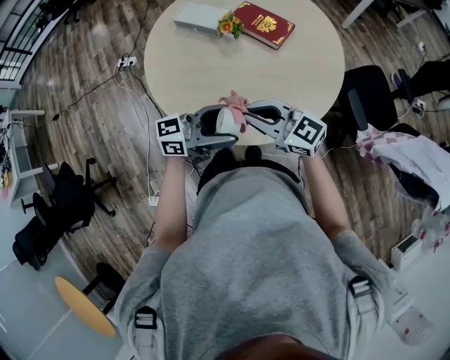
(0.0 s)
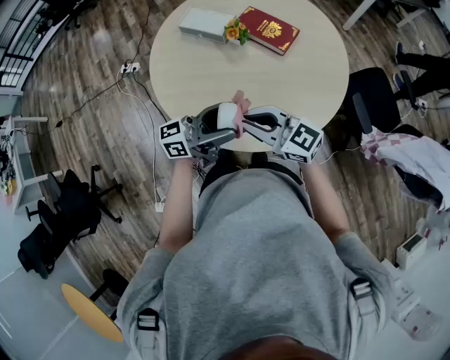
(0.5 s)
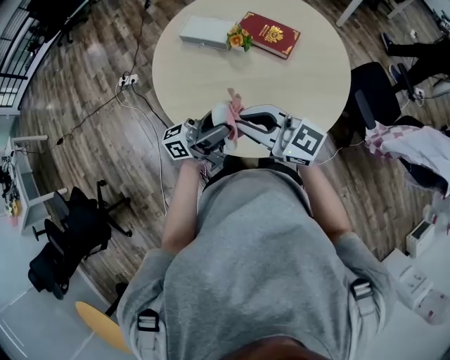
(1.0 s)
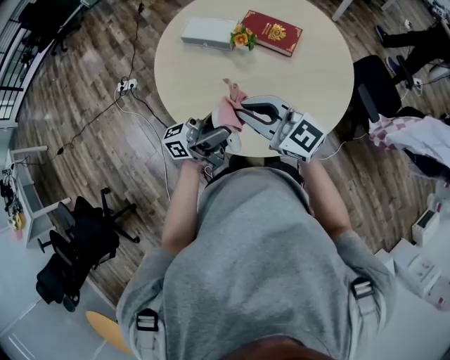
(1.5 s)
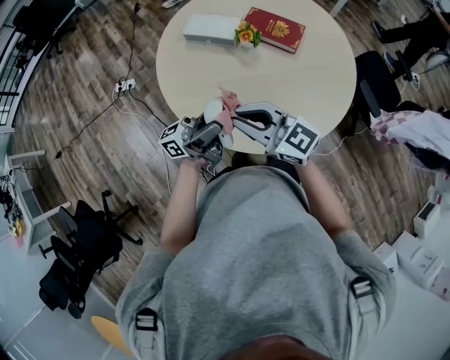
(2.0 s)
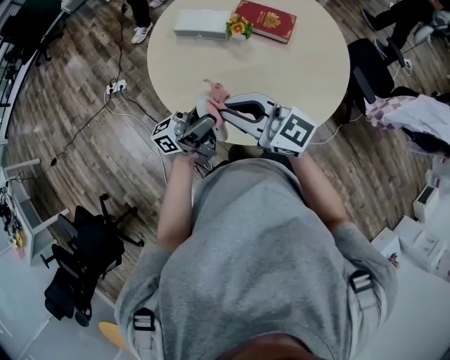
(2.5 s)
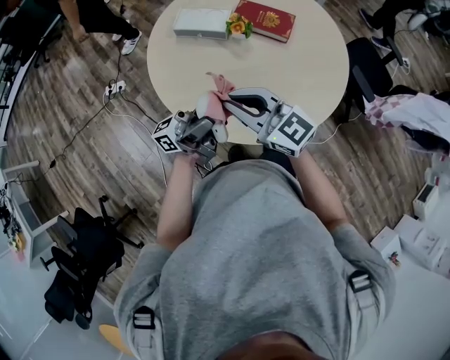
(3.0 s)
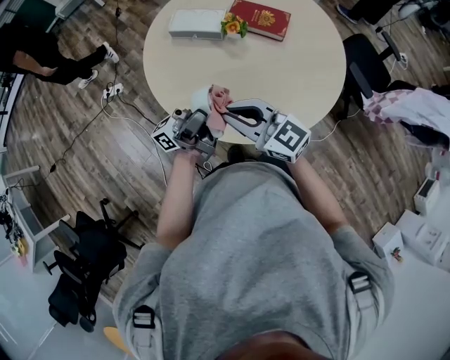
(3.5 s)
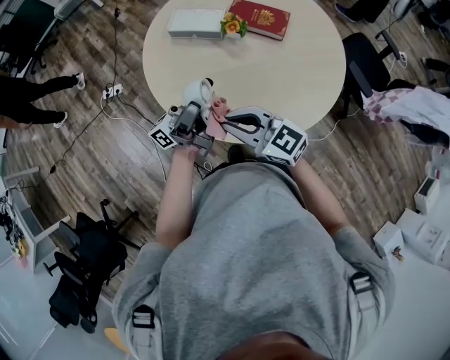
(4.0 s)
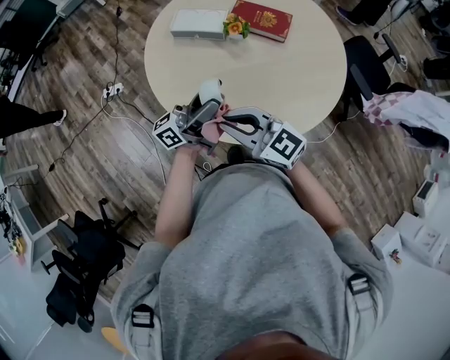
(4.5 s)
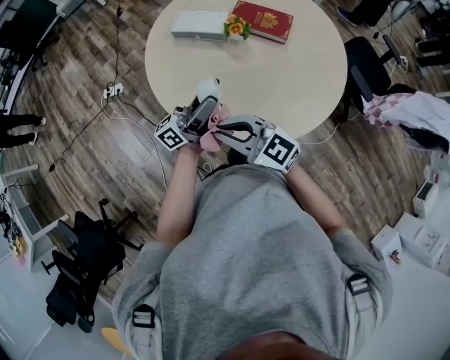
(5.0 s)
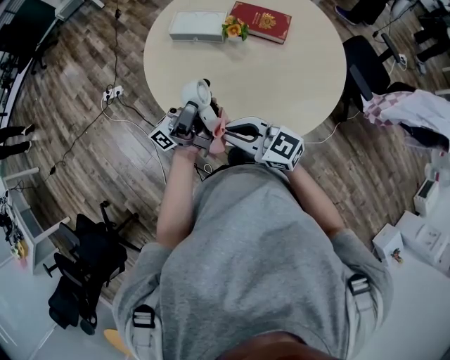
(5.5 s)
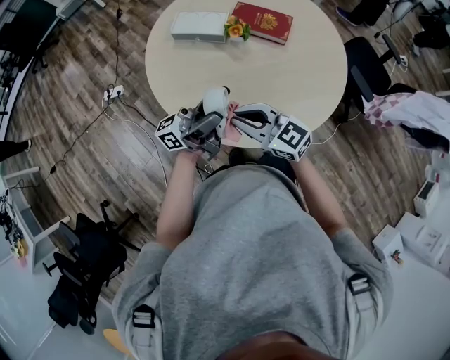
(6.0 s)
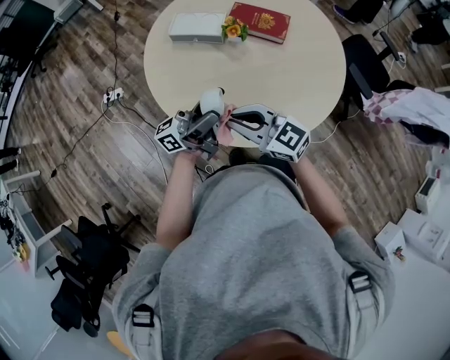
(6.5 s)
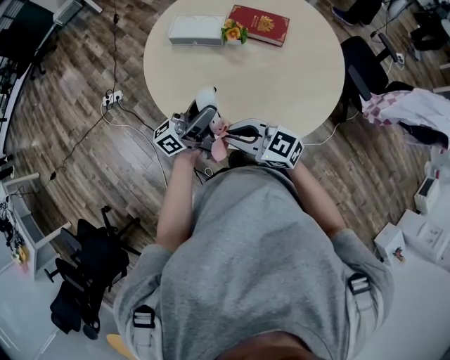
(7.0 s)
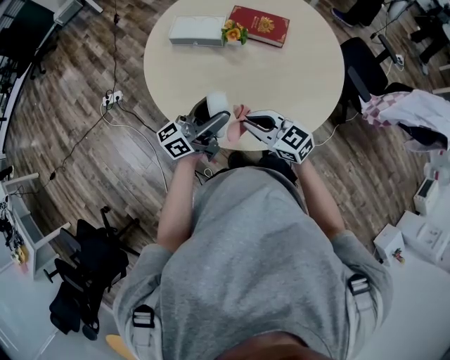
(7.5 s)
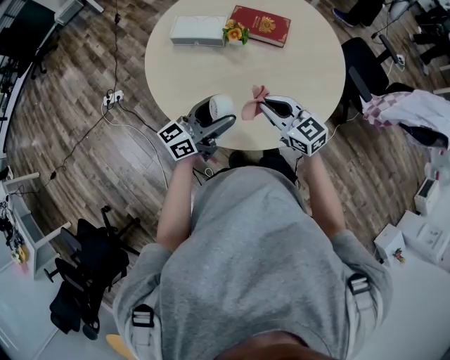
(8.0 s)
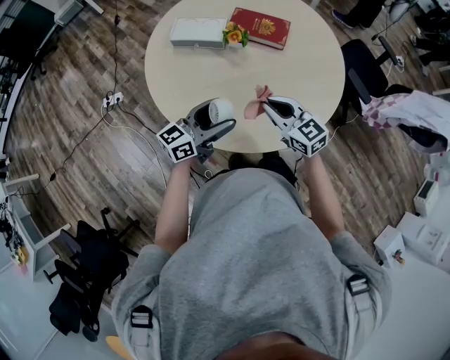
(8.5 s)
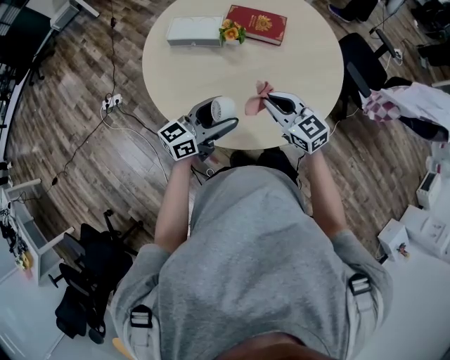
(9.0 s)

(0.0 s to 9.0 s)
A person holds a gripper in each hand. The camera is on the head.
0.0 s - 2.0 s: The left gripper ends up roughly 20 cm from where it was, and turns by roughly 30 degrees. Meanwhile the right gripper changes place by about 20 cm.
2.0 s - 4.5 s: The grippers stay close to where they were, moving slightly.
4.5 s - 7.0 s: The right gripper goes approximately 5 cm downward.
7.0 s - 9.0 s: The right gripper heads to the right and forward, covering some 15 cm, and rotates some 30 degrees. Meanwhile the left gripper is displaced downward by some 5 cm, and changes its angle by approximately 40 degrees.

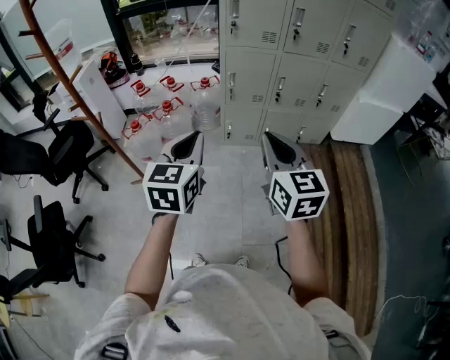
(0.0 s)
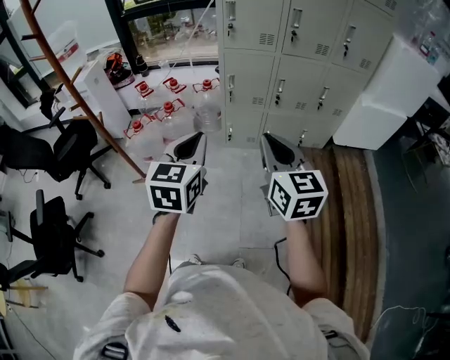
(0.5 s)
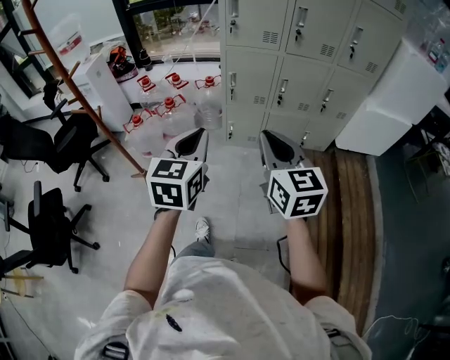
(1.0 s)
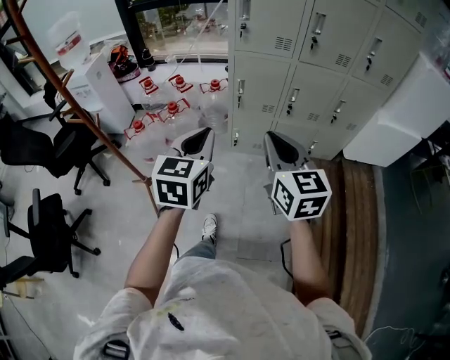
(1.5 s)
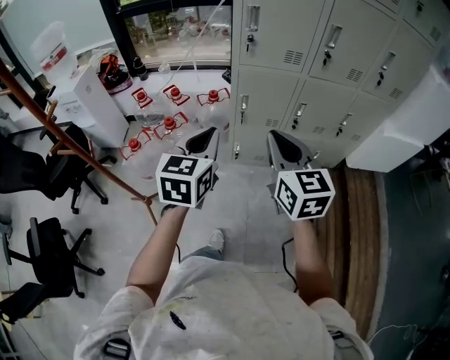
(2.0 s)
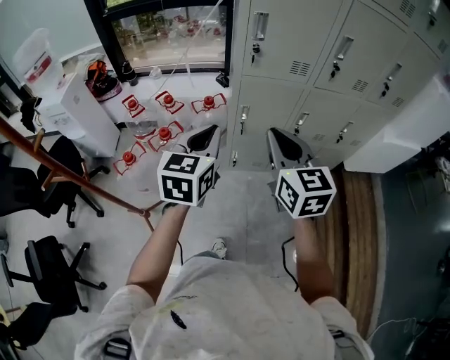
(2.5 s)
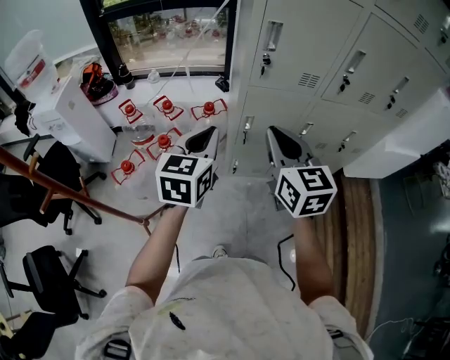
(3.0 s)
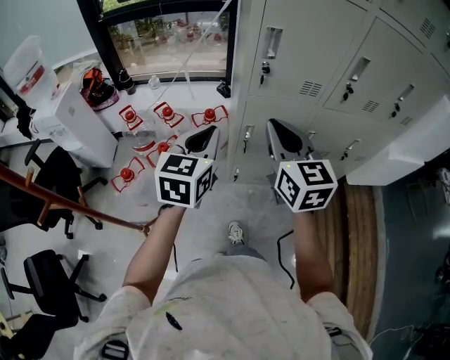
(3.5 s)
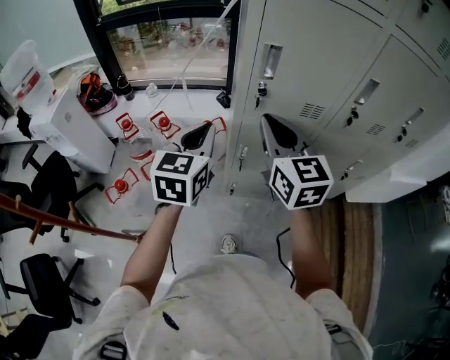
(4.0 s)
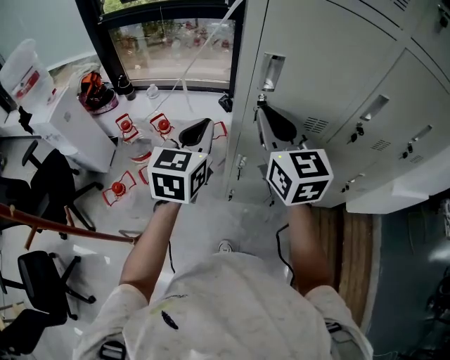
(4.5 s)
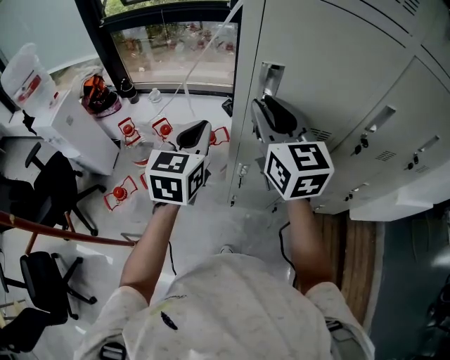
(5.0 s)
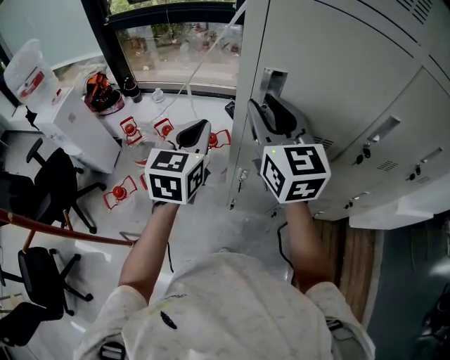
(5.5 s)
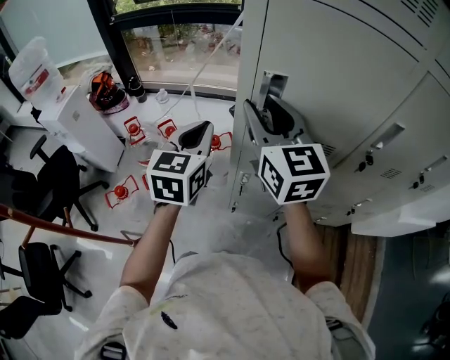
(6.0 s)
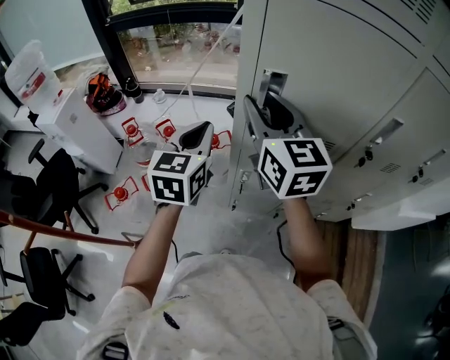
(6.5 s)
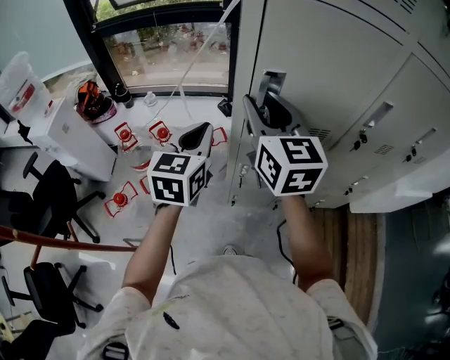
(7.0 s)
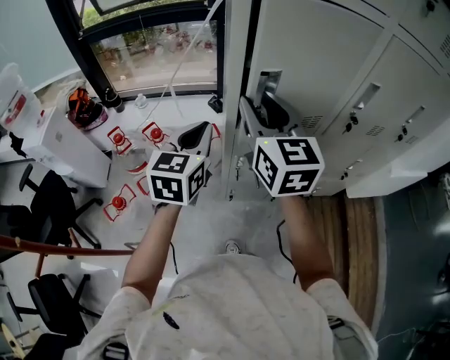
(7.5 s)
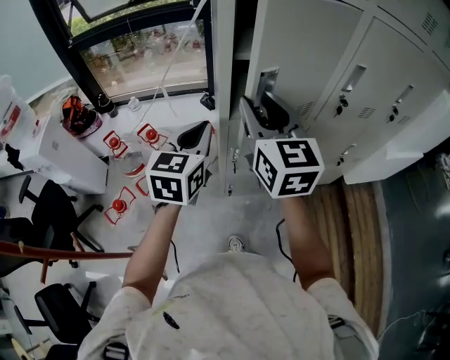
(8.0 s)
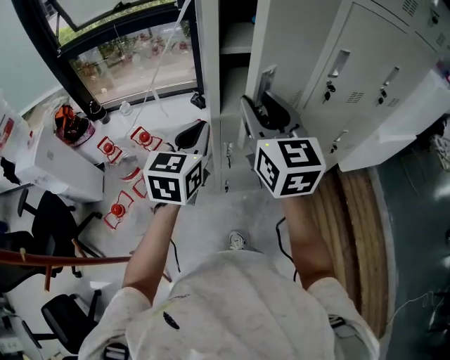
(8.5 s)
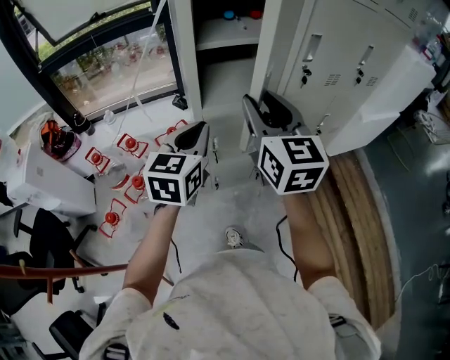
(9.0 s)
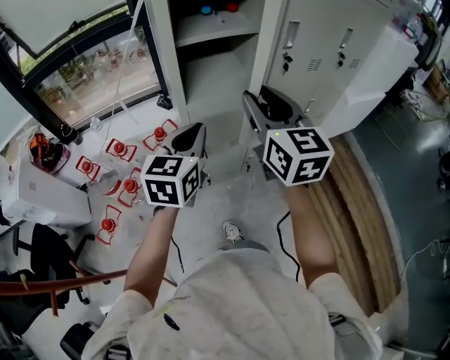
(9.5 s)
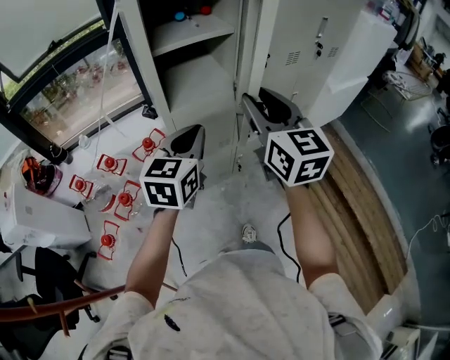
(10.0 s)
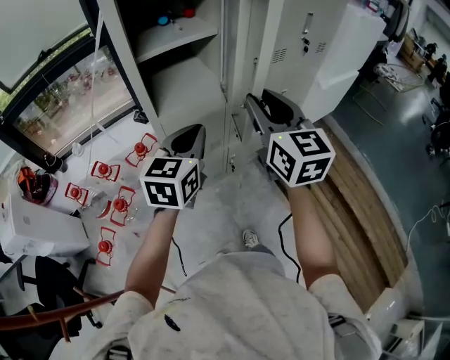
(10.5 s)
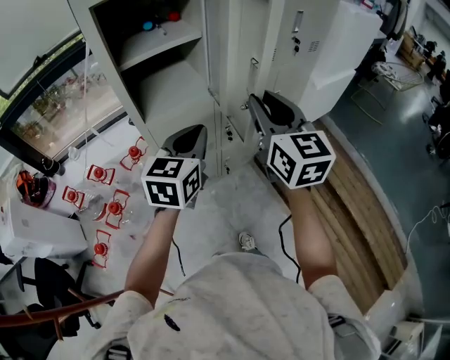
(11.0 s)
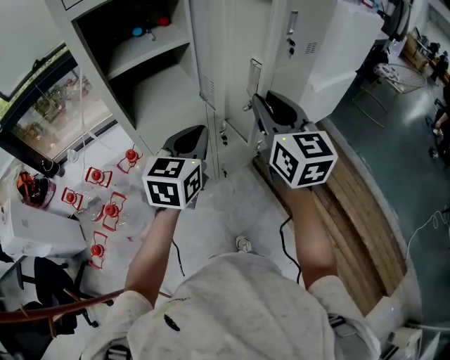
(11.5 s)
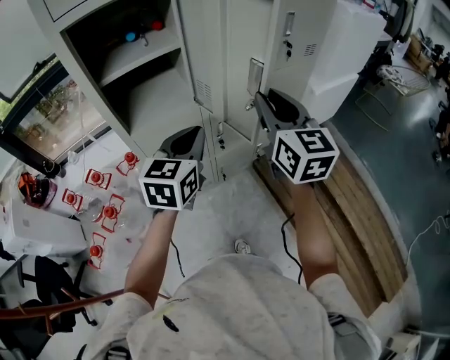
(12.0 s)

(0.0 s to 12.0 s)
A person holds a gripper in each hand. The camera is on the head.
0.0 s - 2.0 s: The two grippers go some 25 cm forward.
2.0 s - 4.0 s: The two grippers go approximately 30 cm forward.
4.0 s - 6.0 s: Both grippers travel together forward, roughly 10 cm. The right gripper opens its fingers.
6.0 s - 8.0 s: Both grippers travel together backward, roughly 10 cm.
8.0 s - 10.0 s: Both grippers travel together to the right and backward, about 15 cm. The left gripper rotates some 20 degrees.
10.0 s - 12.0 s: The left gripper goes about 15 cm to the right and forward; the right gripper shifts about 20 cm to the right.

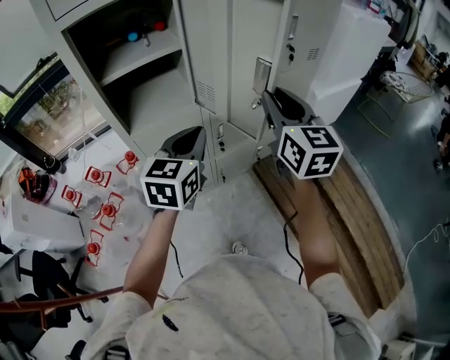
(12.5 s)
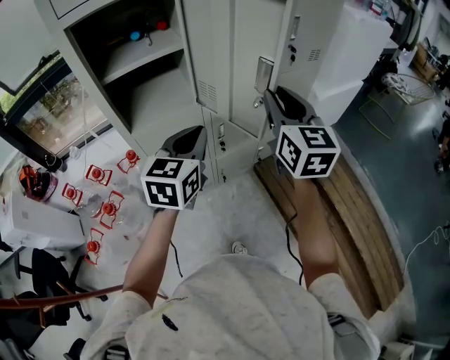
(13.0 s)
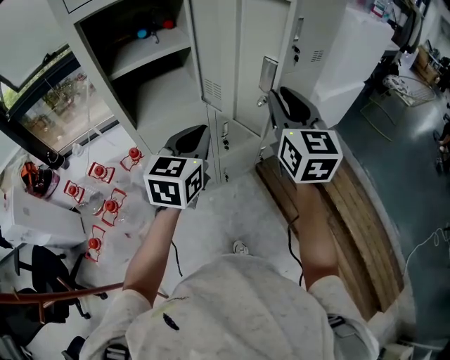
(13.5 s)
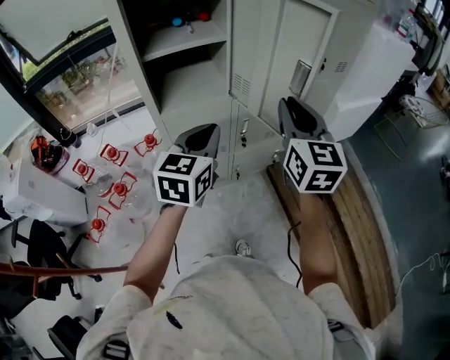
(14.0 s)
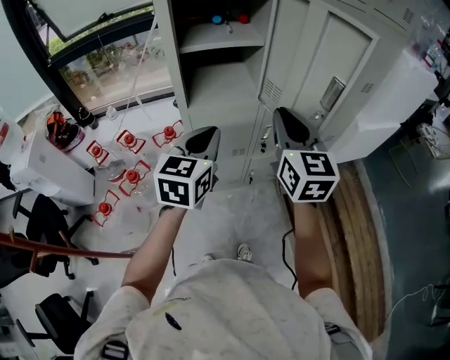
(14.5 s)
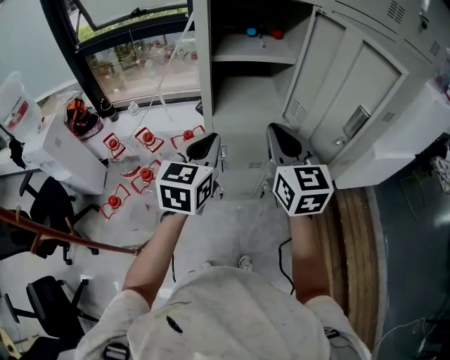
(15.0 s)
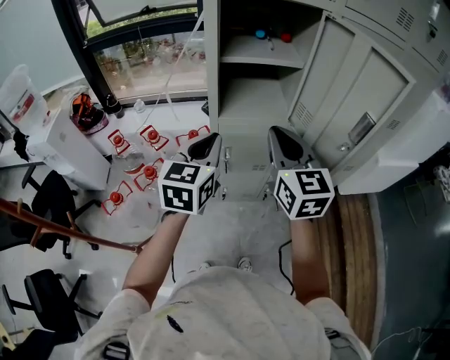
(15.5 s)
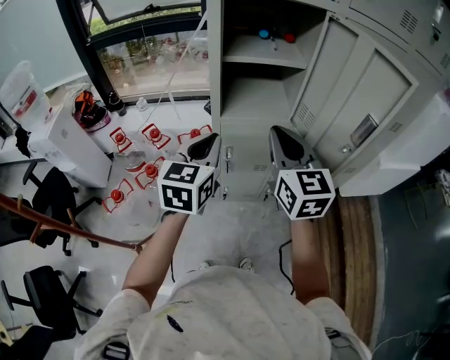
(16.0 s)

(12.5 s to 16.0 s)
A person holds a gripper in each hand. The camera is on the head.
12.5 s - 14.5 s: The two grippers go approximately 15 cm to the left and backward.
14.5 s - 16.0 s: The grippers both shift to the left by some 10 cm.

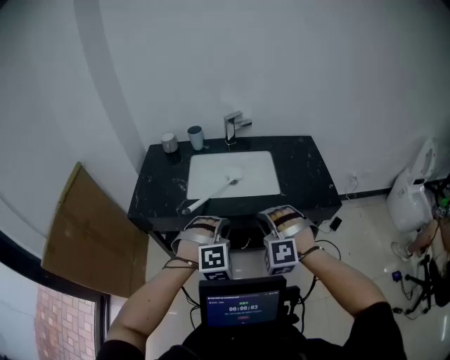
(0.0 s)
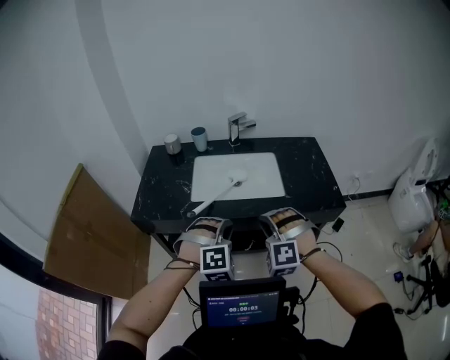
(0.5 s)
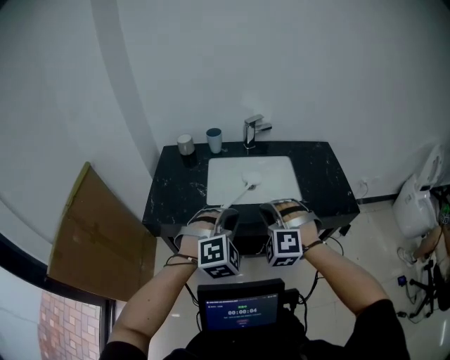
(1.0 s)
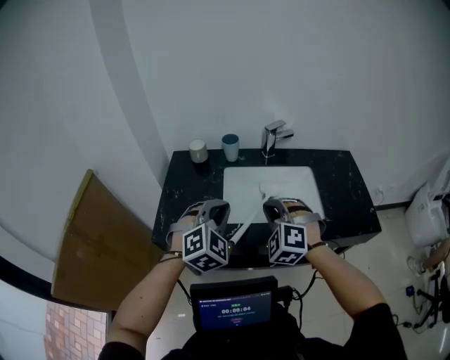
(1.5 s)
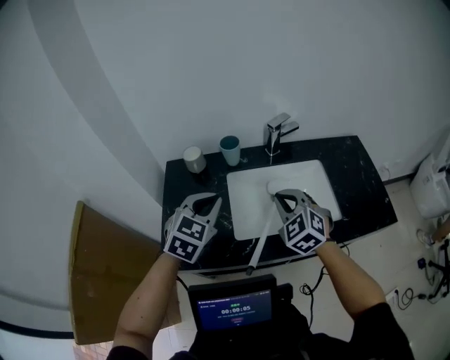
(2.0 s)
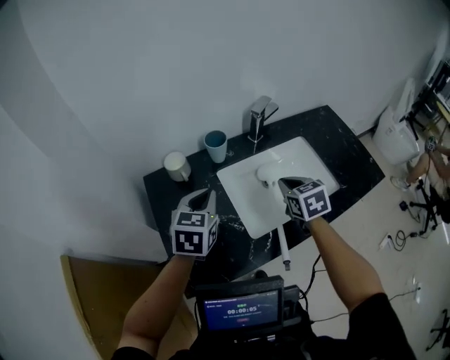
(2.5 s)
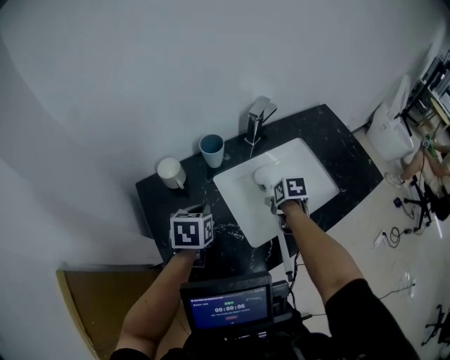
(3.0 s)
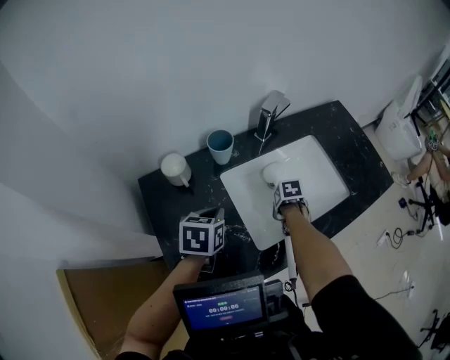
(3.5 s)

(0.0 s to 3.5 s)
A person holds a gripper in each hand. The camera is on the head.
0.0 s - 2.0 s: Both grippers move forward and to the left, approximately 40 cm. The right gripper rolls clockwise, seen from behind, by approximately 50 degrees. Meanwhile the left gripper rolls counterclockwise, seen from behind, by approximately 50 degrees.
2.0 s - 3.5 s: The left gripper shifts by some 20 cm, and rotates approximately 40 degrees. Meanwhile the right gripper shifts approximately 30 cm downward, twists approximately 80 degrees clockwise, seen from behind, and opens and closes again.
